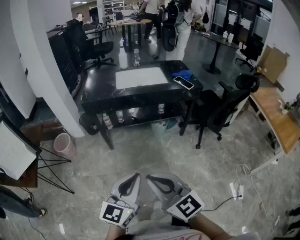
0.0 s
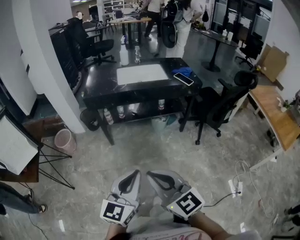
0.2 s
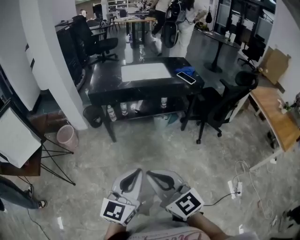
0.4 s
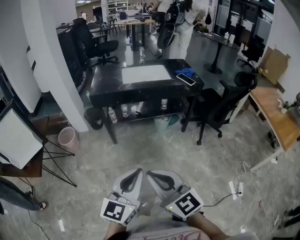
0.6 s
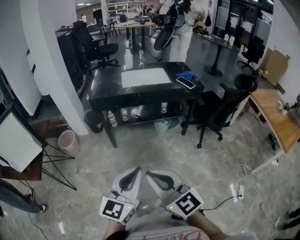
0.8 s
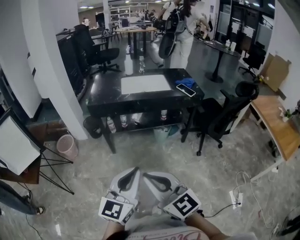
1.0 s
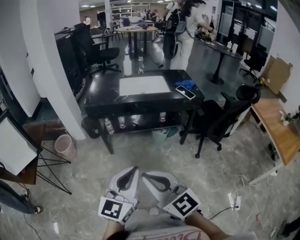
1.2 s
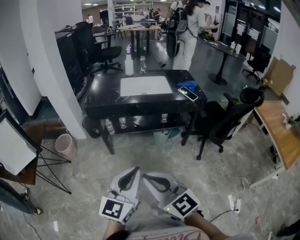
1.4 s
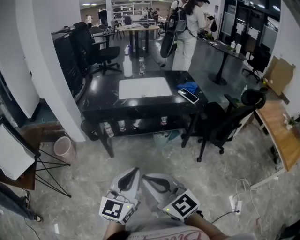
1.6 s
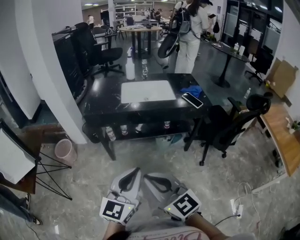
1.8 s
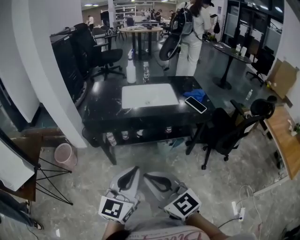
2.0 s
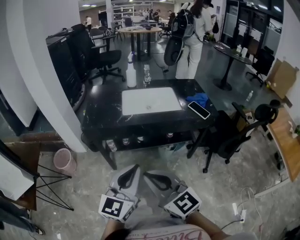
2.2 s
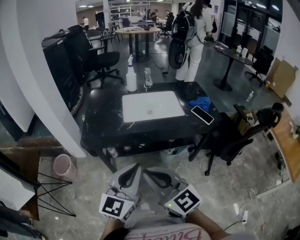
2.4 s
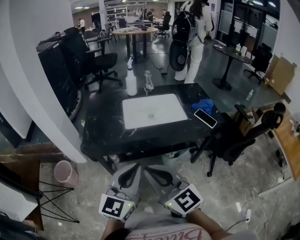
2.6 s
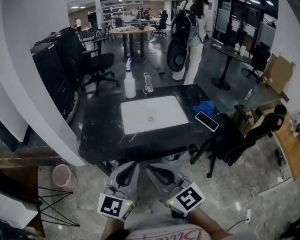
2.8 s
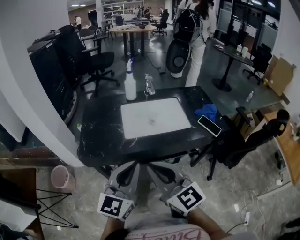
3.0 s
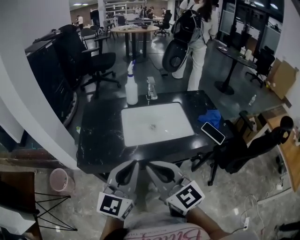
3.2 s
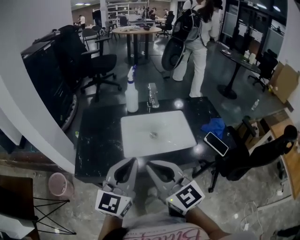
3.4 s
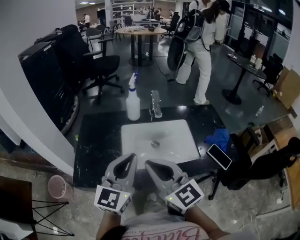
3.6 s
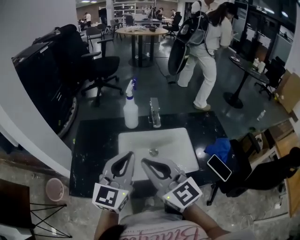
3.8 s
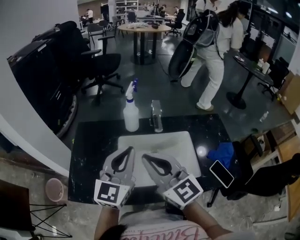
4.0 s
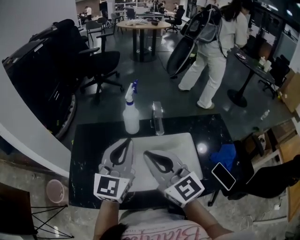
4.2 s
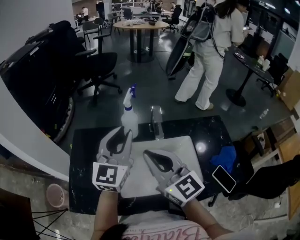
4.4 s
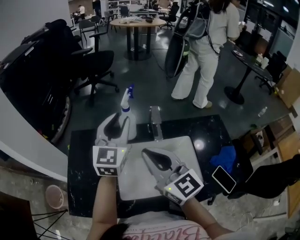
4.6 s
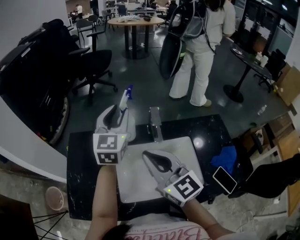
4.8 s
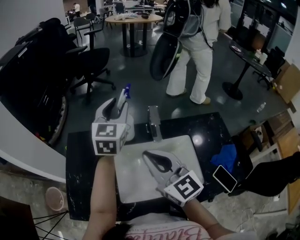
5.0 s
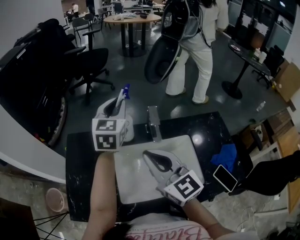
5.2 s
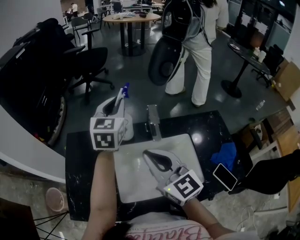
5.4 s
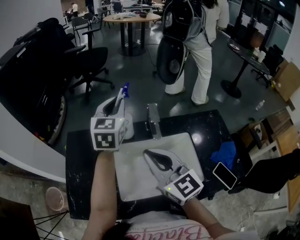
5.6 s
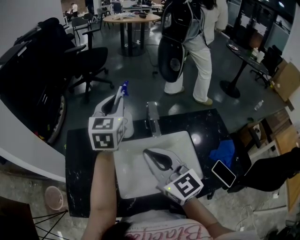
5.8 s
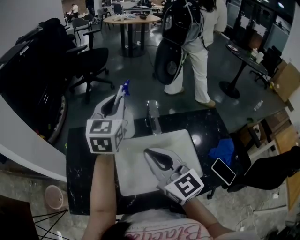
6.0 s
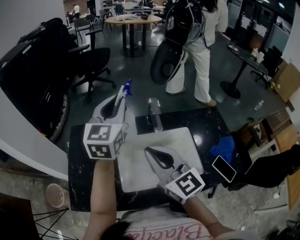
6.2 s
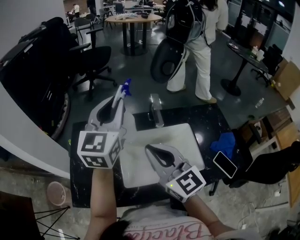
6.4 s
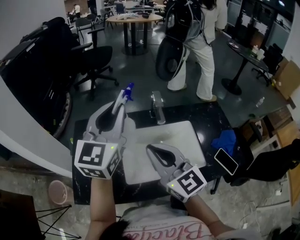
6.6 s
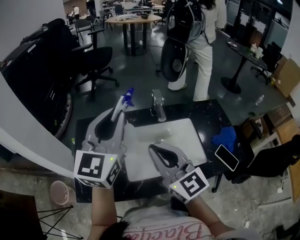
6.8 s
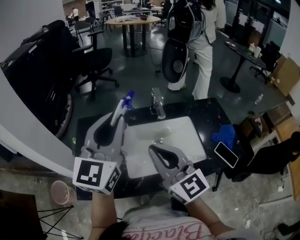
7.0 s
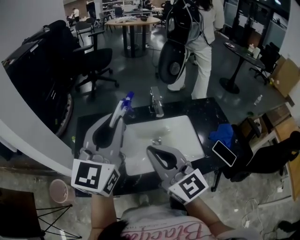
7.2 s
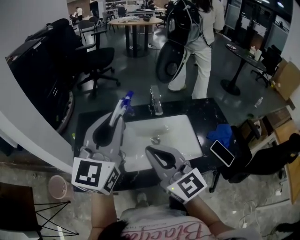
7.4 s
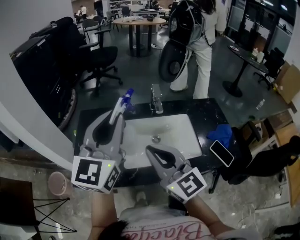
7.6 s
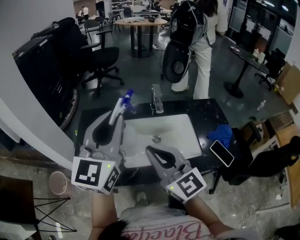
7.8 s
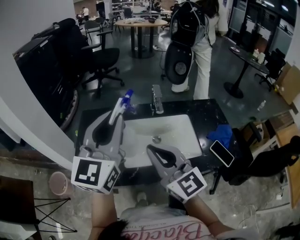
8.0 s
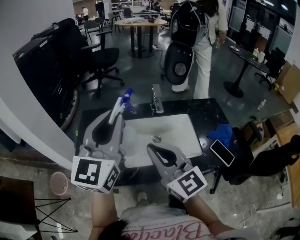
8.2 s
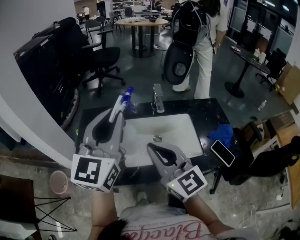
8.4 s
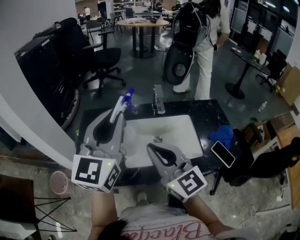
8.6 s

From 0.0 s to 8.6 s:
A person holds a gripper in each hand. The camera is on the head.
From 0.0 s to 1.4 s: The left gripper changes place by approximately 5 cm.
From 1.4 s to 2.8 s: Both grippers travel together forward, roughly 30 cm.
From 2.8 s to 4.4 s: The two grippers go approximately 35 cm forward.
From 4.4 s to 5.8 s: The left gripper shifts some 15 cm forward.
From 5.8 s to 7.2 s: The right gripper shifts approximately 10 cm backward, while the left gripper goes roughly 25 cm backward.
From 7.2 s to 8.6 s: The grippers move only a little.

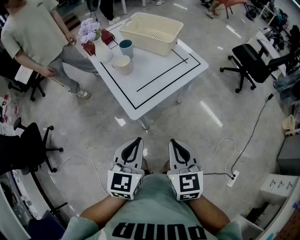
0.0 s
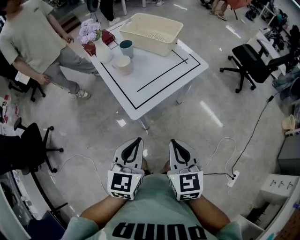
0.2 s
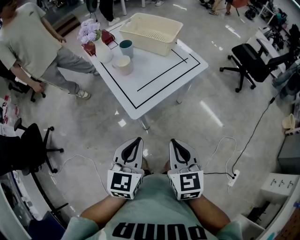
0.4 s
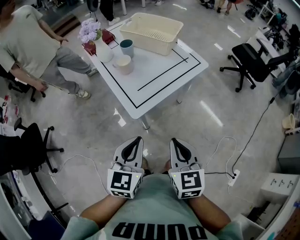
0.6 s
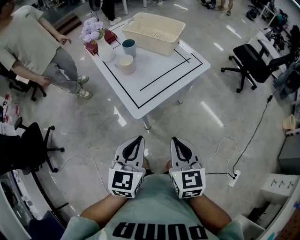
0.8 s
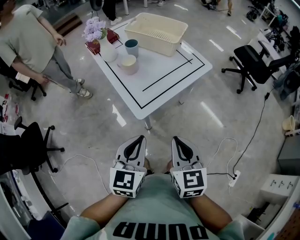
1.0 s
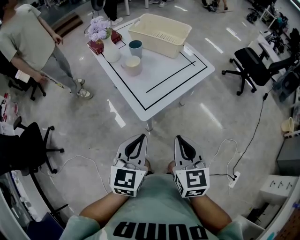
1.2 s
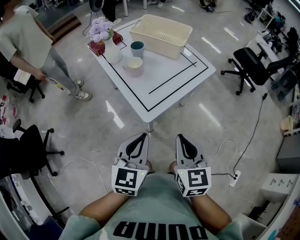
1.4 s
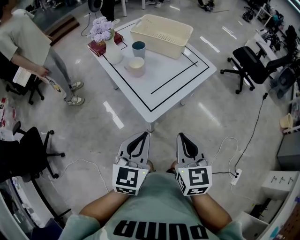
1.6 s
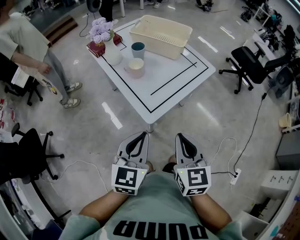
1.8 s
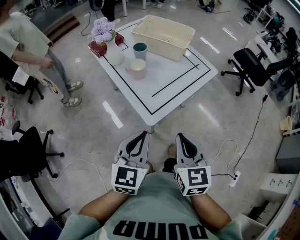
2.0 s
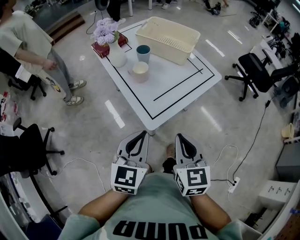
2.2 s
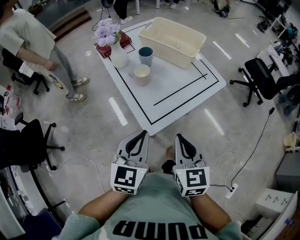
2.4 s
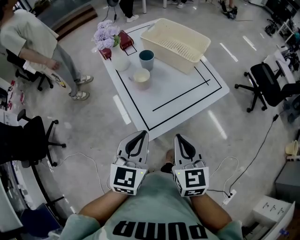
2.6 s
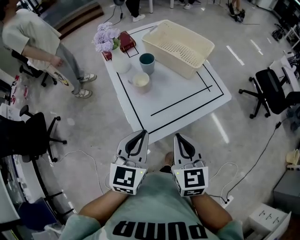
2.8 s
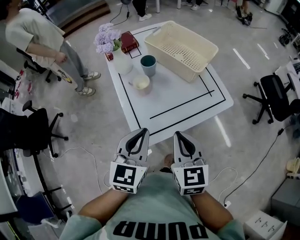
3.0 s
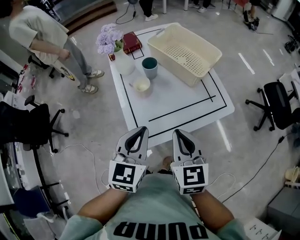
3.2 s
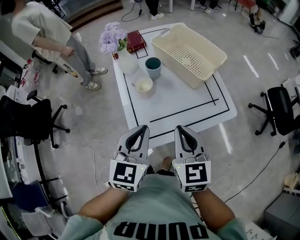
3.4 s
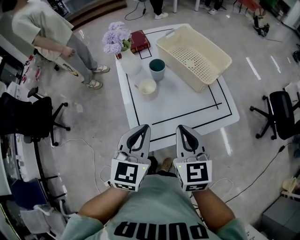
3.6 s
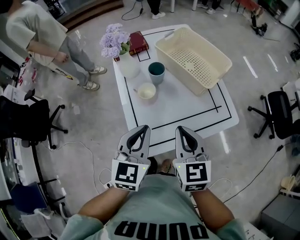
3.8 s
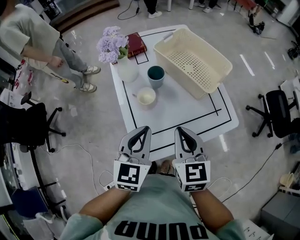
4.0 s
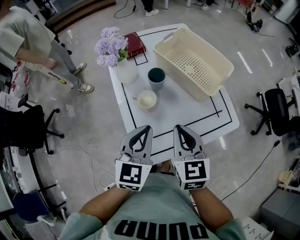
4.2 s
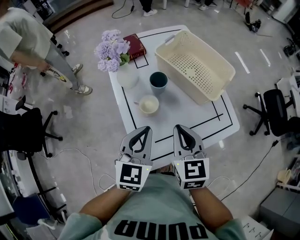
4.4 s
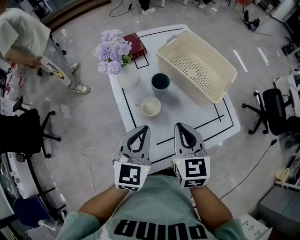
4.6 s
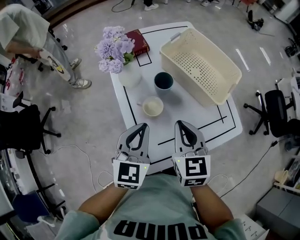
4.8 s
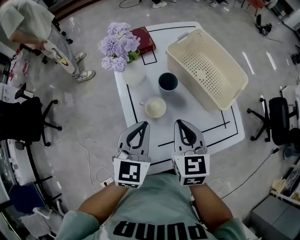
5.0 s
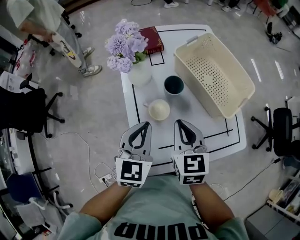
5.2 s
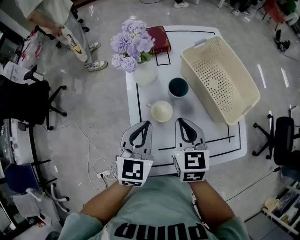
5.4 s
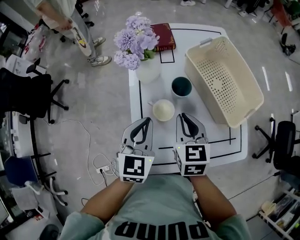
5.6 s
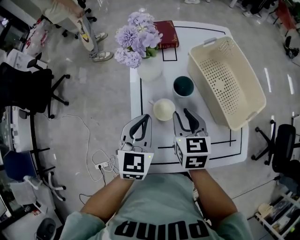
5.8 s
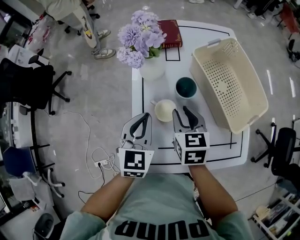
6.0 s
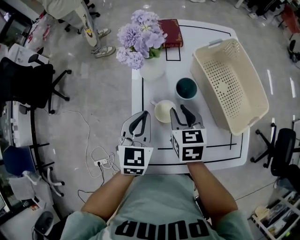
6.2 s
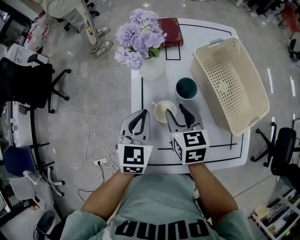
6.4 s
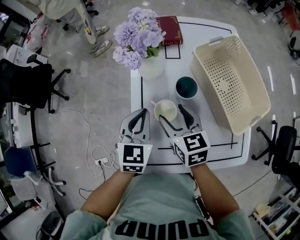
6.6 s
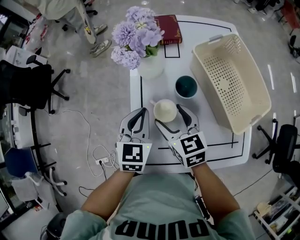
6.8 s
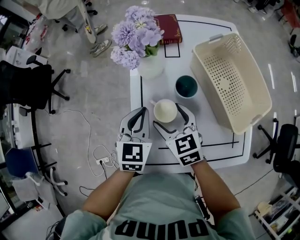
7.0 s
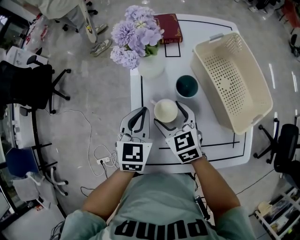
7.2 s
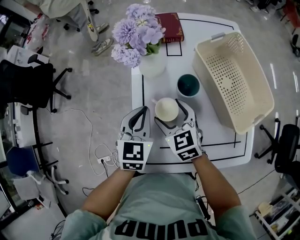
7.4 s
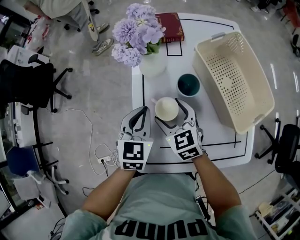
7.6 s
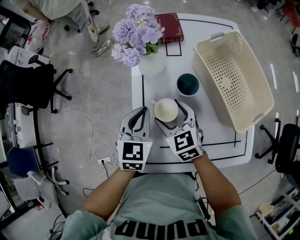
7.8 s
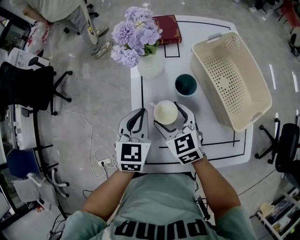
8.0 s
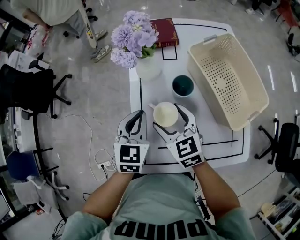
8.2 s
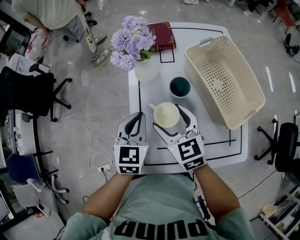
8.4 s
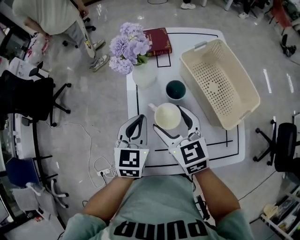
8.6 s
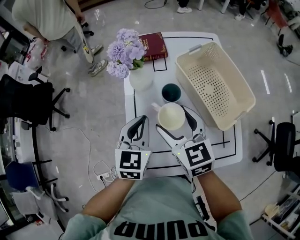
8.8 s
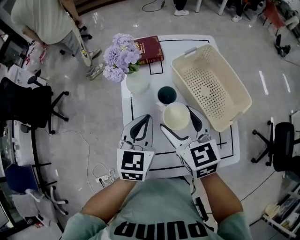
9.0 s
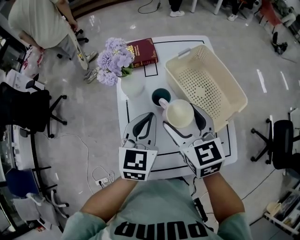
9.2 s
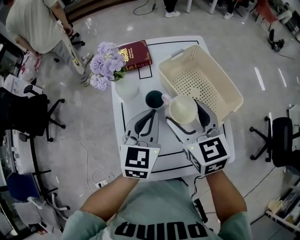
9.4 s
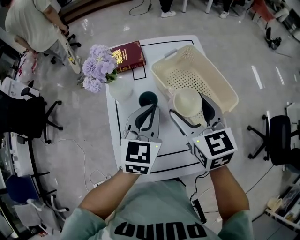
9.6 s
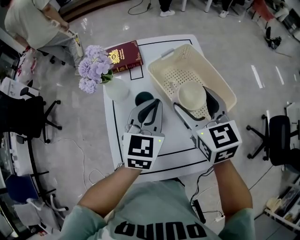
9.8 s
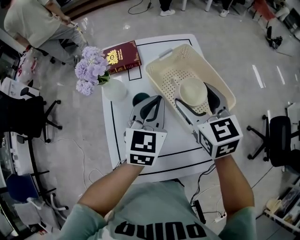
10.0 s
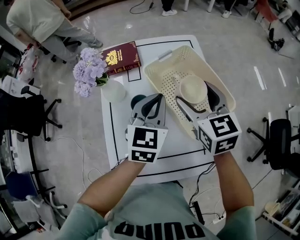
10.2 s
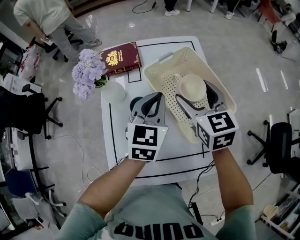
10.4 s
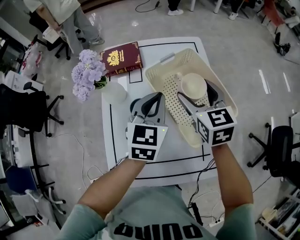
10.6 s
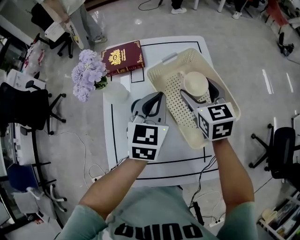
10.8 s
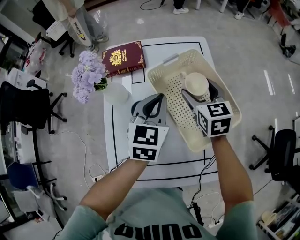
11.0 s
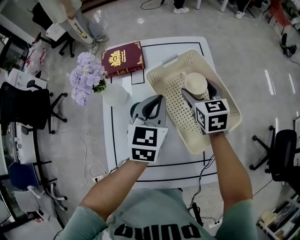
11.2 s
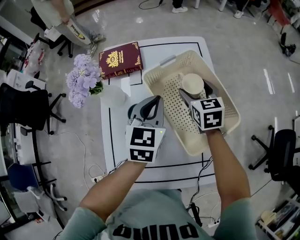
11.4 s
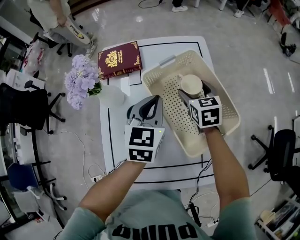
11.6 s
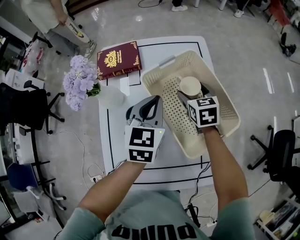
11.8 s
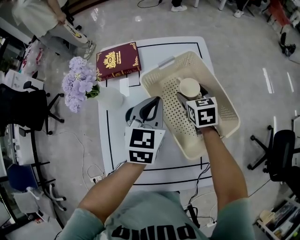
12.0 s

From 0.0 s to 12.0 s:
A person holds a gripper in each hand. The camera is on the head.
From 0.0 s to 1.6 s: The two grippers go approximately 5 cm to the left.
From 1.6 s to 3.0 s: The two grippers go approximately 20 cm forward.
From 3.0 s to 4.4 s: Both grippers travel together forward, roughly 15 cm.
From 4.4 s to 6.0 s: The left gripper shifts some 10 cm forward and downward, and changes its angle by roughly 20 degrees. The right gripper shifts roughly 15 cm forward and downward, and changes its angle by approximately 20 degrees.
From 6.0 s to 7.6 s: The right gripper goes approximately 5 cm to the left, swivels about 30 degrees, and opens up.
From 7.6 s to 9.0 s: Both grippers move upward and to the right, some 15 cm.
From 9.0 s to 10.4 s: The grippers both shift to the right and forward by about 20 cm.
From 10.4 s to 12.0 s: The right gripper moves downward and forward, roughly 20 cm. Meanwhile the left gripper changes place by roughly 5 cm.

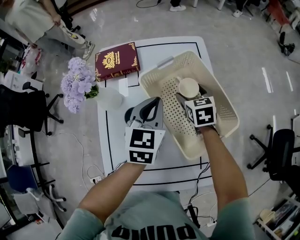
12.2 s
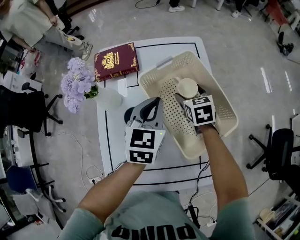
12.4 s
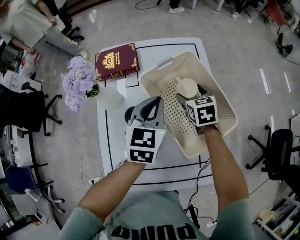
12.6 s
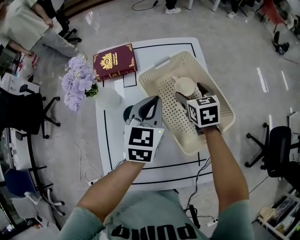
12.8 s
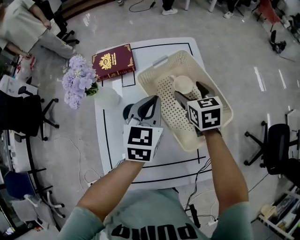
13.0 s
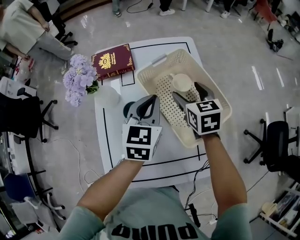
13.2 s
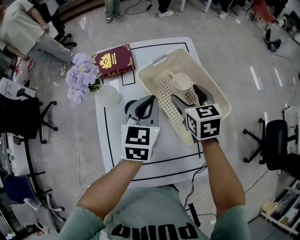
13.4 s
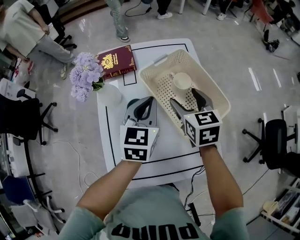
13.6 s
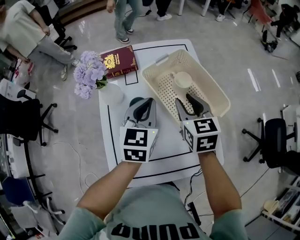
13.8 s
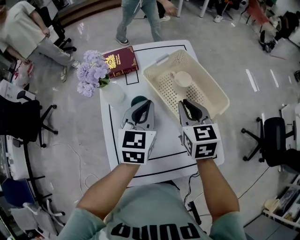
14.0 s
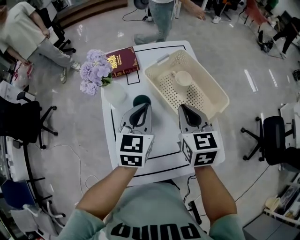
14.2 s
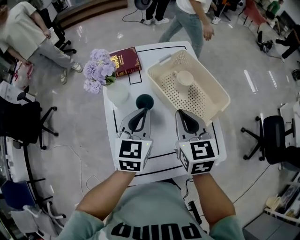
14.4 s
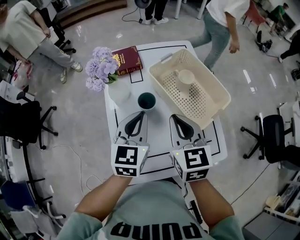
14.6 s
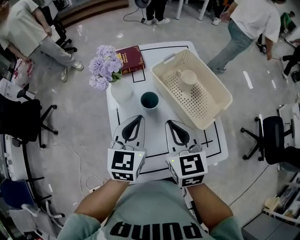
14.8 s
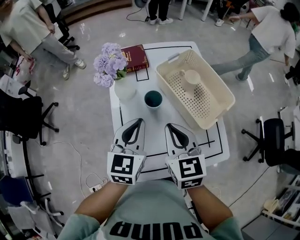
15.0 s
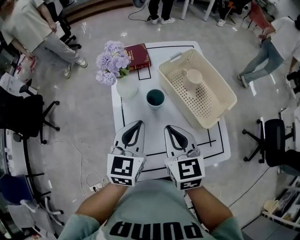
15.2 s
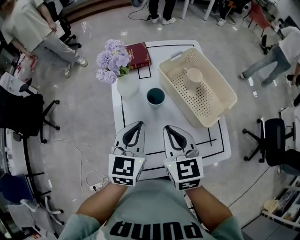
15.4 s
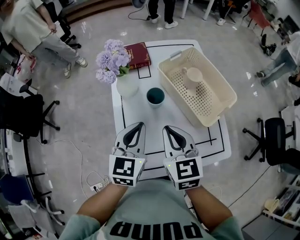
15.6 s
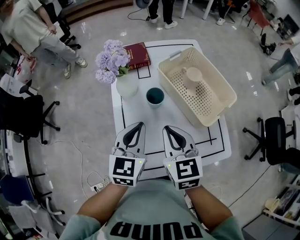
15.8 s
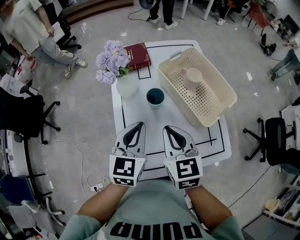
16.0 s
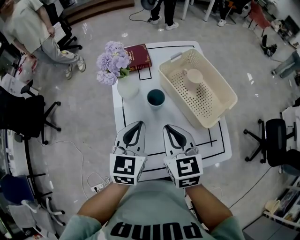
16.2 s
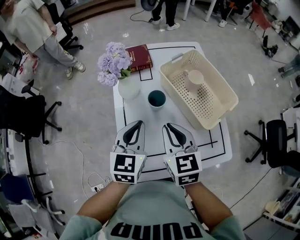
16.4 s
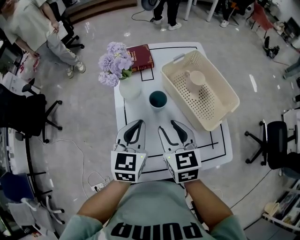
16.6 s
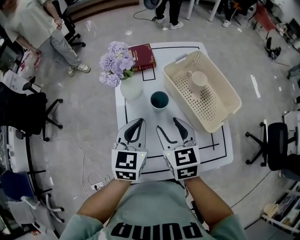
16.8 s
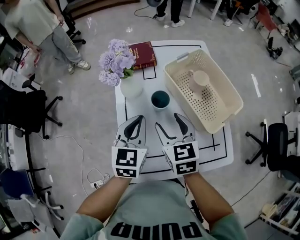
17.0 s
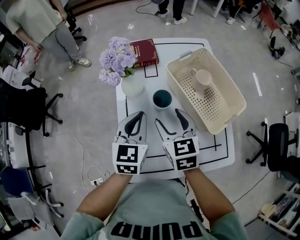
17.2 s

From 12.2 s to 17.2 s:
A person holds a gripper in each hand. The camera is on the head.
From 12.2 s to 13.8 s: The right gripper is displaced upward and backward by approximately 20 cm, and closes. Meanwhile the left gripper moves backward, about 5 cm.
From 13.8 s to 15.6 s: Both grippers move backward and to the left, some 20 cm. The right gripper closes its fingers.
From 15.6 s to 17.2 s: Both grippers move forward, approximately 5 cm. The right gripper opens.
